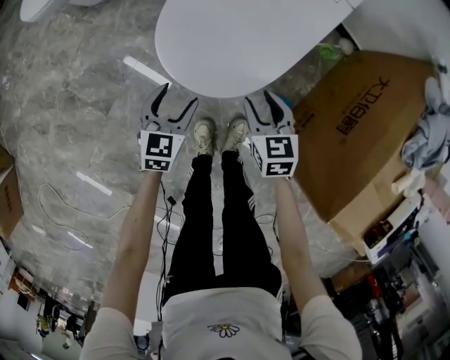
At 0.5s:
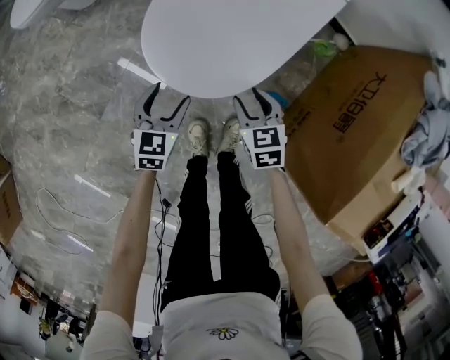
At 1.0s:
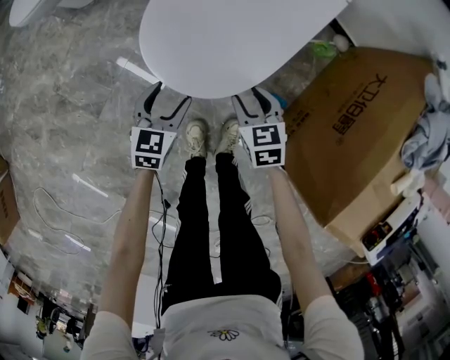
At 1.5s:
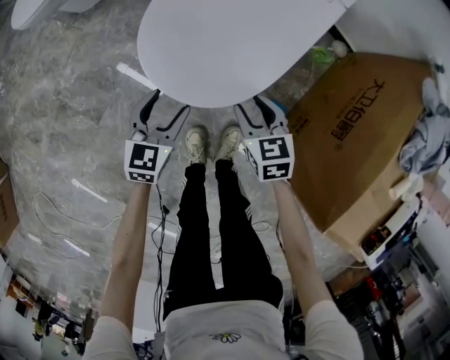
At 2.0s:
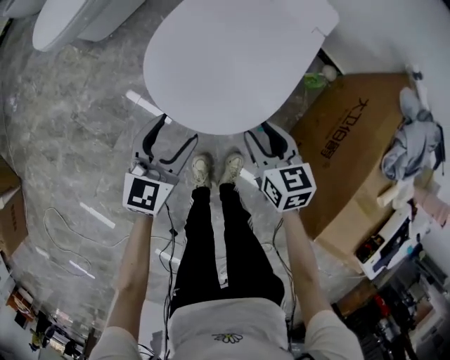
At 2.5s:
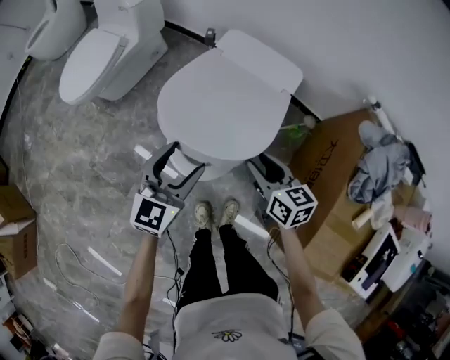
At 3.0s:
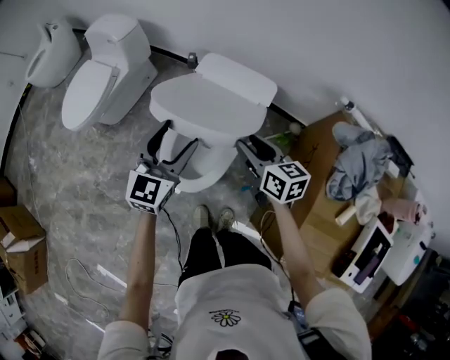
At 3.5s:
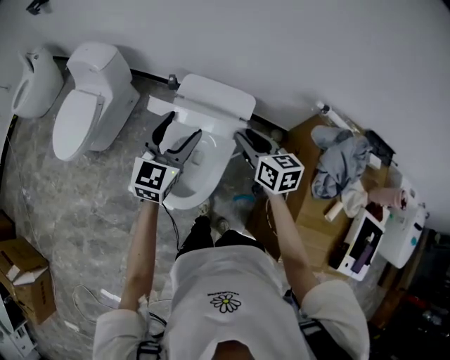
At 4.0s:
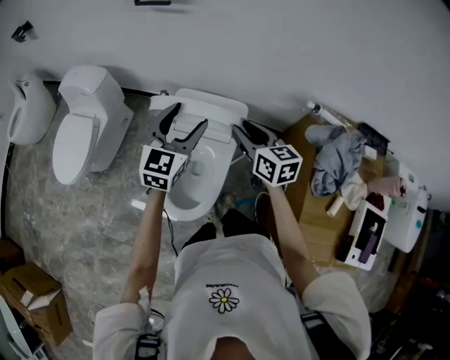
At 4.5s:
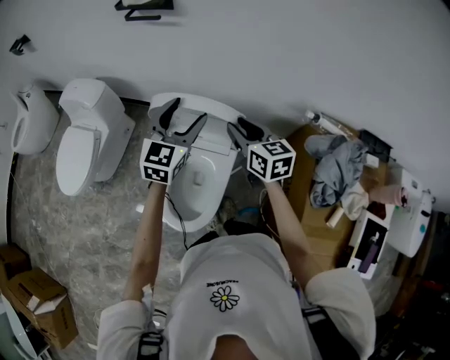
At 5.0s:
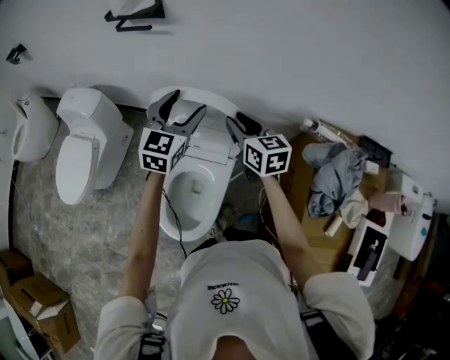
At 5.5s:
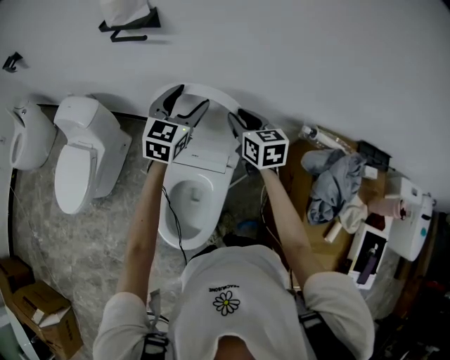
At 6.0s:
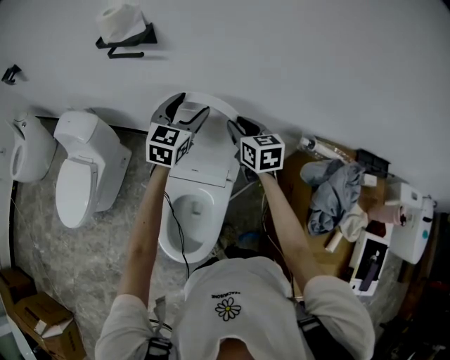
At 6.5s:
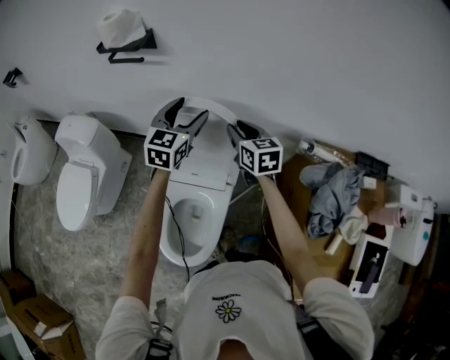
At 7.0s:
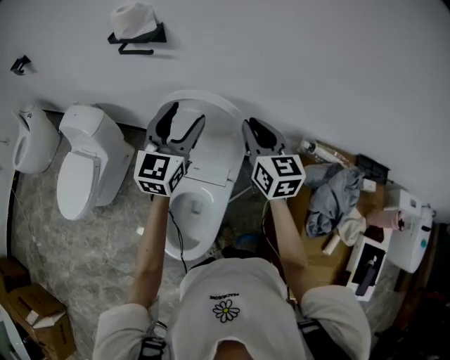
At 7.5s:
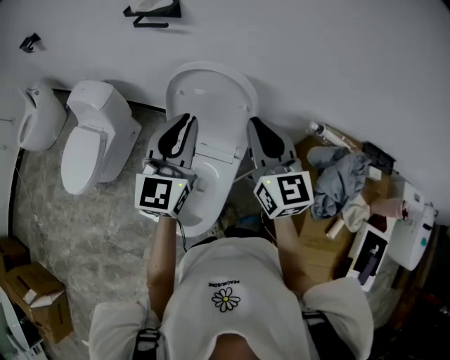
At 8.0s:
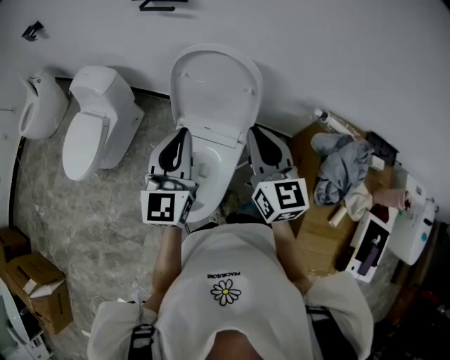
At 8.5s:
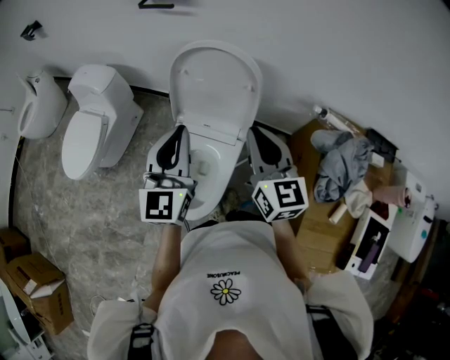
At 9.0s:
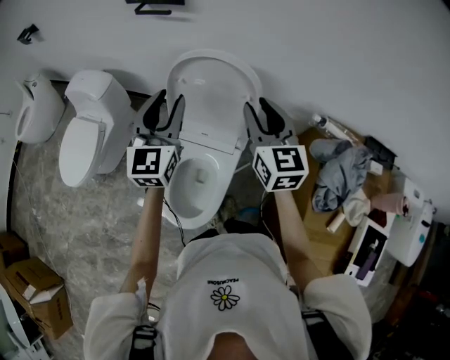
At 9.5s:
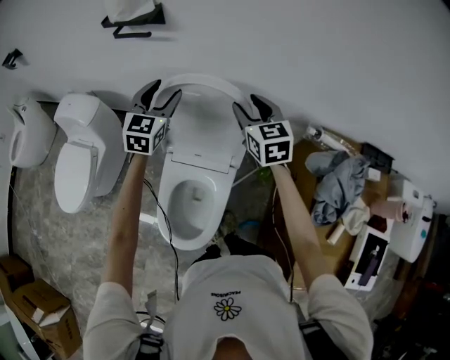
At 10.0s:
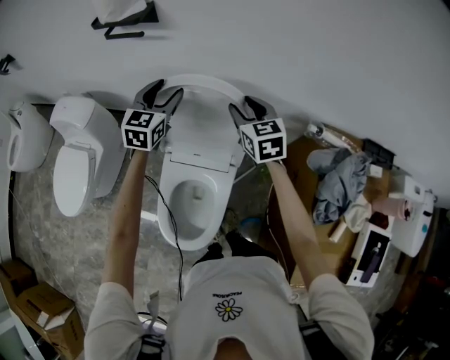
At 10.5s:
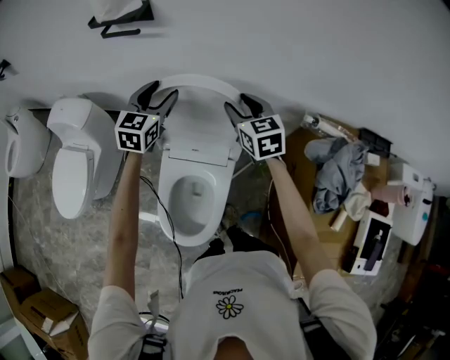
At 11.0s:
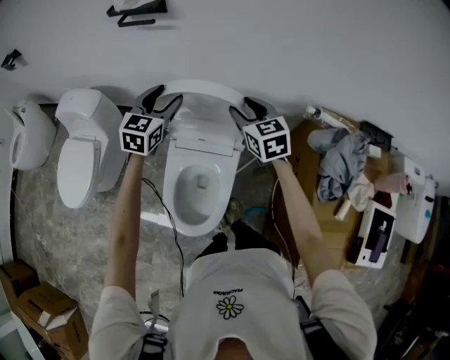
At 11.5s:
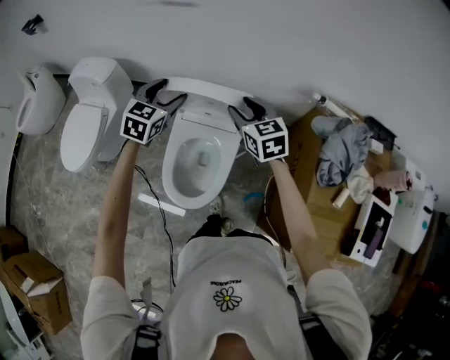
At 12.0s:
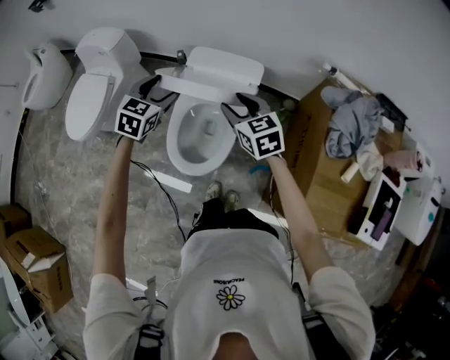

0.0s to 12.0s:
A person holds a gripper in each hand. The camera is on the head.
0.0s to 2.0s: The right gripper travels upward by some 10 cm, while the left gripper travels upward by roughly 15 cm.
2.0s to 4.0s: The right gripper travels upward and forward by roughly 40 cm, and changes its angle by some 30 degrees, while the left gripper travels upward, forward and to the right by roughly 50 cm, and swivels about 20 degrees.
4.0s to 6.0s: Both grippers move forward, roughly 20 cm.
6.0s to 8.0s: The left gripper travels backward by some 25 cm, swivels approximately 20 degrees, and closes up, while the right gripper is displaced backward and upward by some 25 cm, swivels about 20 degrees, and closes up.
8.0s to 10.0s: The left gripper heads forward, covering approximately 30 cm, turns by approximately 20 degrees, and opens its fingers. The right gripper travels forward and downward by some 25 cm, changes its angle by about 20 degrees, and opens its fingers.
10.0s to 12.0s: Both grippers travel together backward, about 30 cm.

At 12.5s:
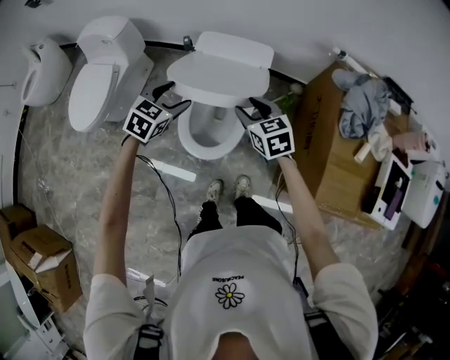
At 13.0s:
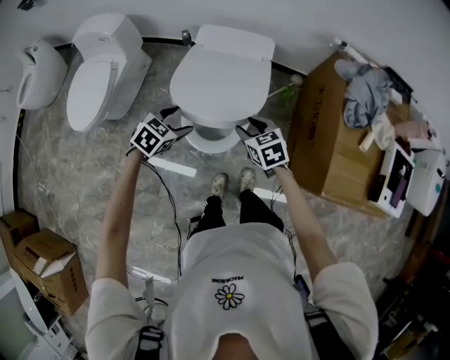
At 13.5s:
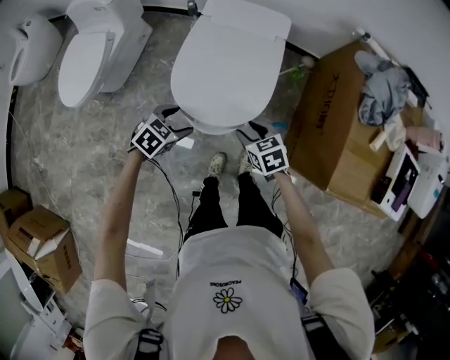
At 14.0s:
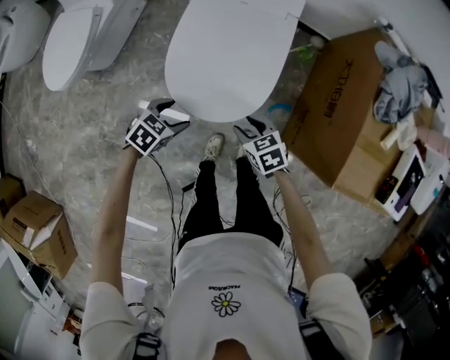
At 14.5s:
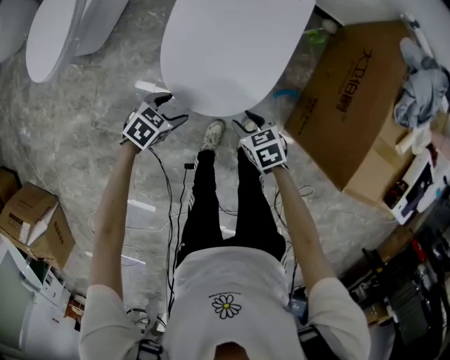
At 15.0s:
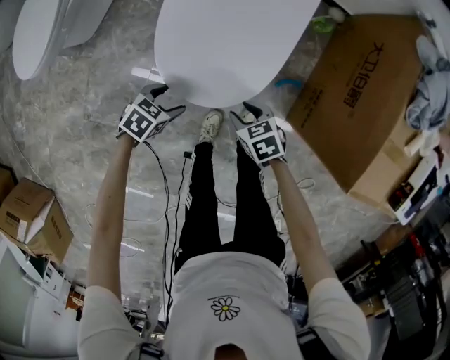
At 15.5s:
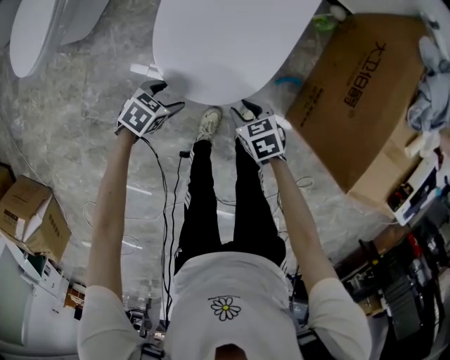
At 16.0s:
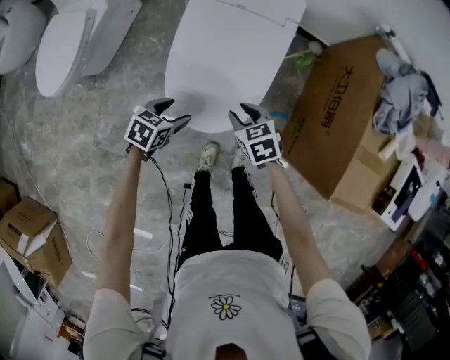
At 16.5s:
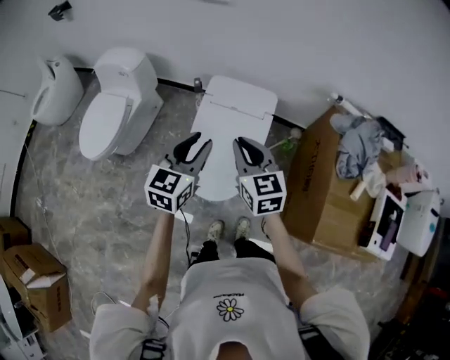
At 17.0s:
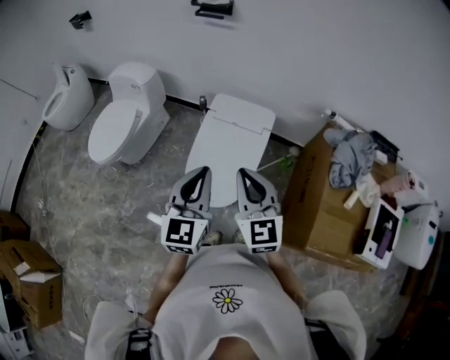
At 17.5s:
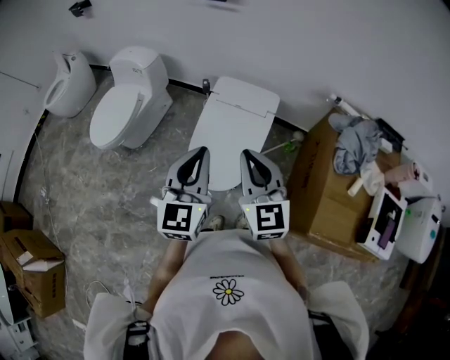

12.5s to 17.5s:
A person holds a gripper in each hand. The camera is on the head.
12.5s to 15.0s: The grippers both shift downward by about 35 cm. The right gripper rotates some 30 degrees; the left gripper turns by roughly 40 degrees.
15.0s to 17.5s: Both grippers move upward, some 60 cm. The right gripper points its fingers roughly 60 degrees further upward, and closes. The left gripper tips its fingers upward by about 60 degrees, and closes.

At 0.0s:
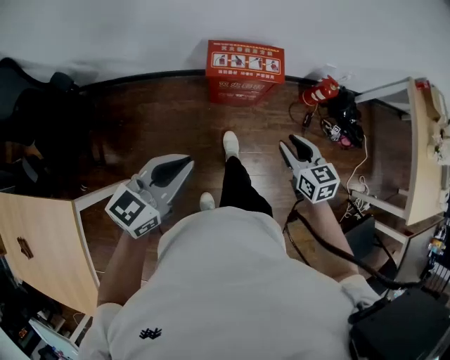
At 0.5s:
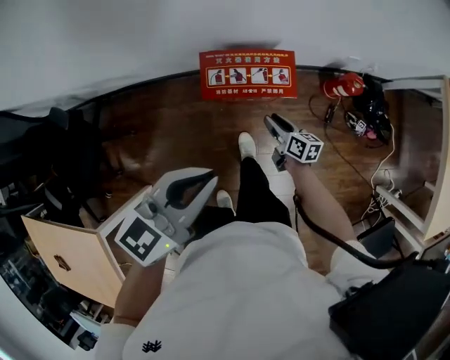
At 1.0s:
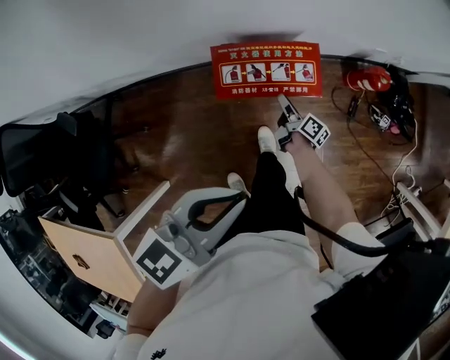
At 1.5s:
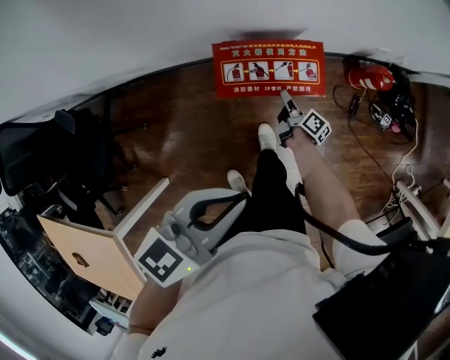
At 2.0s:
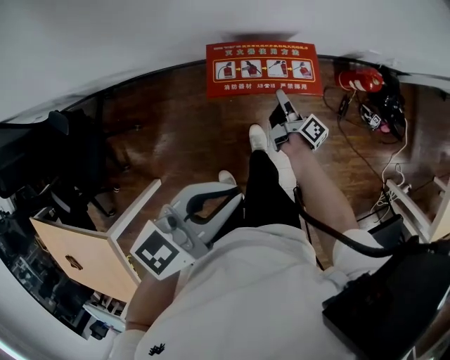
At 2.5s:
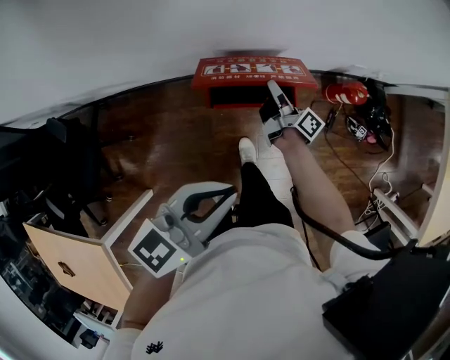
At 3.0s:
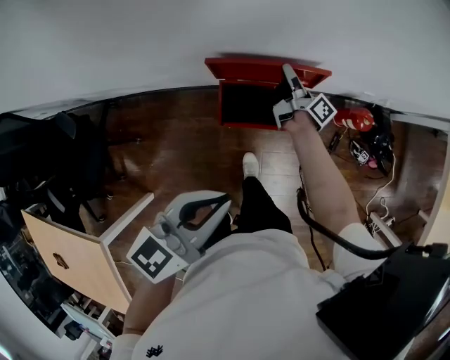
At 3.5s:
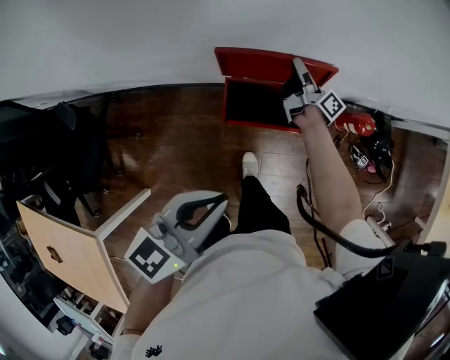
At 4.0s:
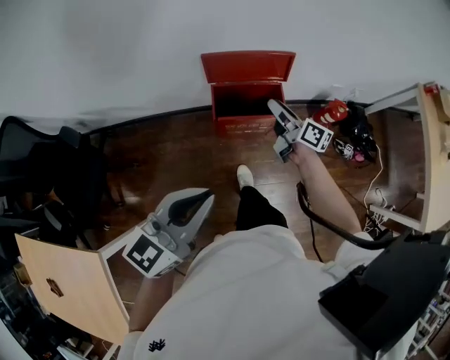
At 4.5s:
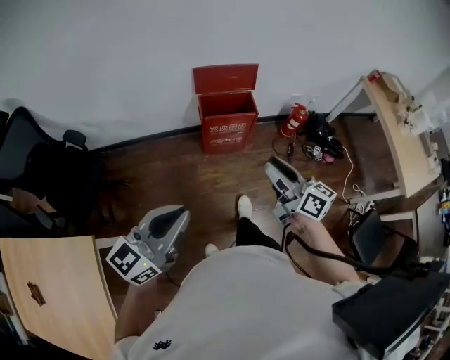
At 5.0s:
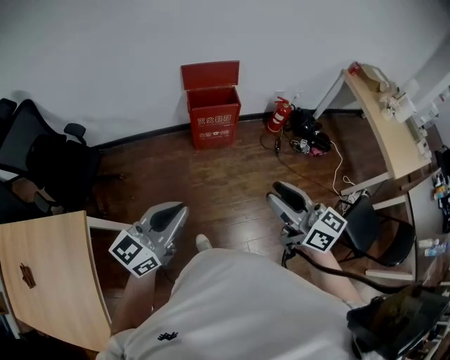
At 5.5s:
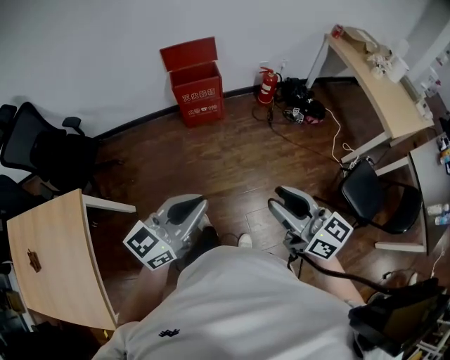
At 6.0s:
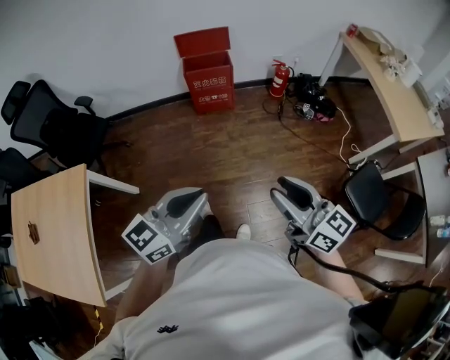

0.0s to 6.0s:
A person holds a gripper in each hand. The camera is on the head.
0.0s to 2.0s: The left gripper goes about 20 cm forward. The right gripper goes roughly 35 cm forward and downward, and rolls clockwise, seen from behind, by approximately 70 degrees.
2.0s to 4.0s: The right gripper travels upward by roughly 20 cm, travels forward and back again, some 20 cm each way, and turns by about 30 degrees. Meanwhile the left gripper shifts about 10 cm backward, upward and to the left.
4.0s to 6.0s: The two grippers travel together, backward, some 60 cm. The right gripper swivels roughly 40 degrees.

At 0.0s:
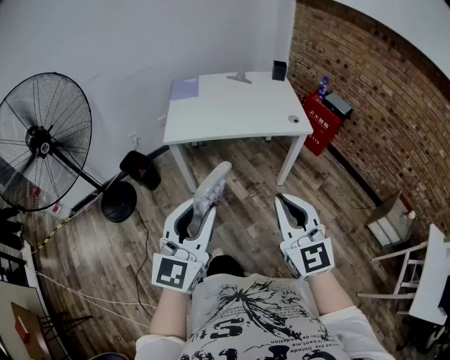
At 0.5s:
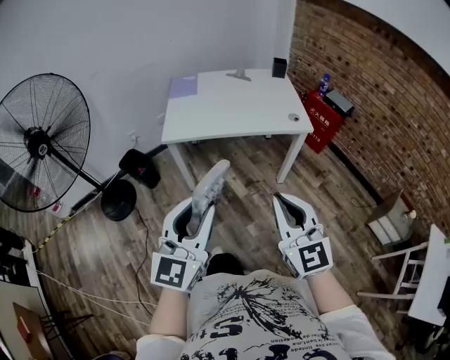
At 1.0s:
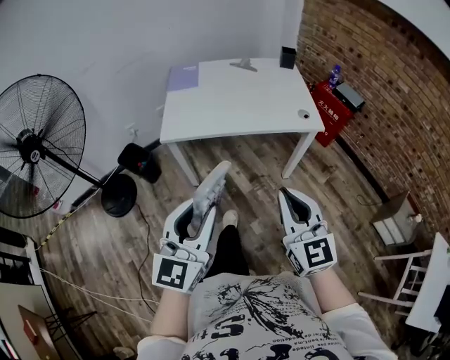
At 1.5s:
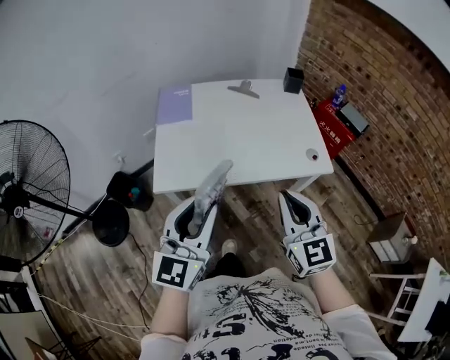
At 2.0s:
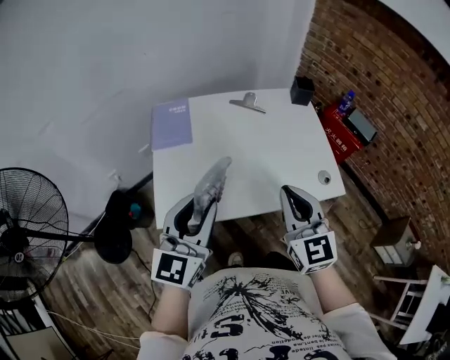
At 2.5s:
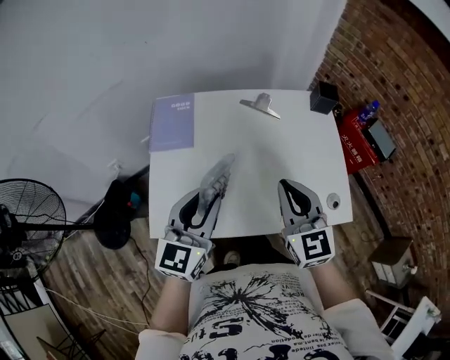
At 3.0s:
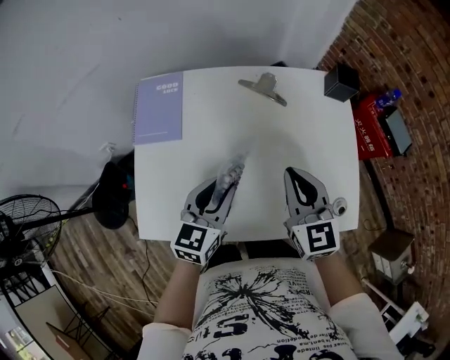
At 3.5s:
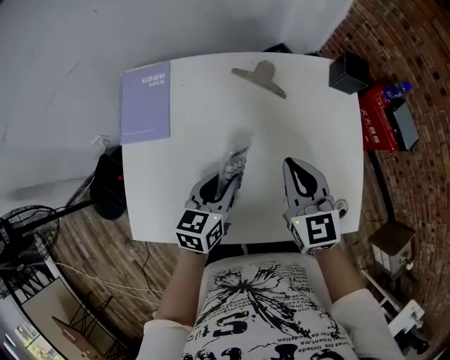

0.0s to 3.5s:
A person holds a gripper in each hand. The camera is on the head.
0.0s to 2.0s: The two grippers travel together, forward, some 60 cm.
2.0s to 3.5s: Both grippers travel together forward and downward, some 40 cm. The left gripper changes its angle by about 40 degrees.
